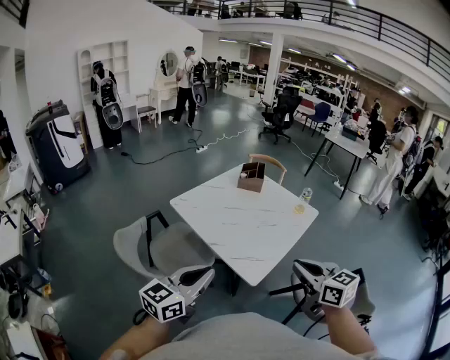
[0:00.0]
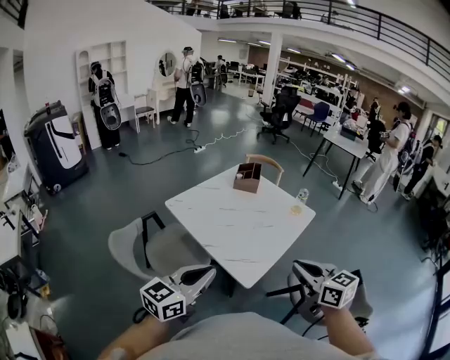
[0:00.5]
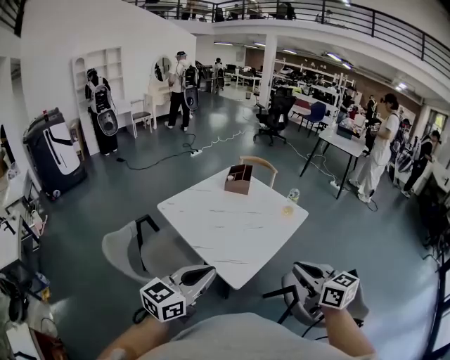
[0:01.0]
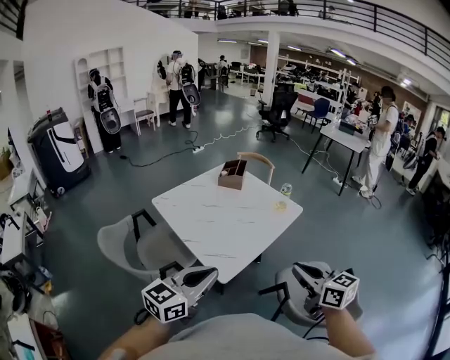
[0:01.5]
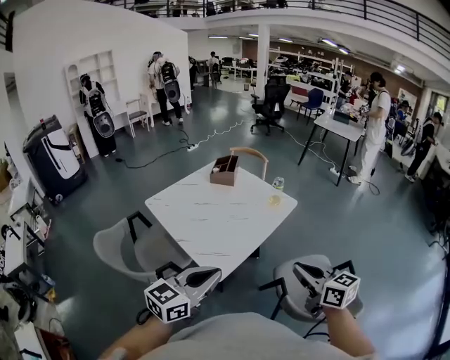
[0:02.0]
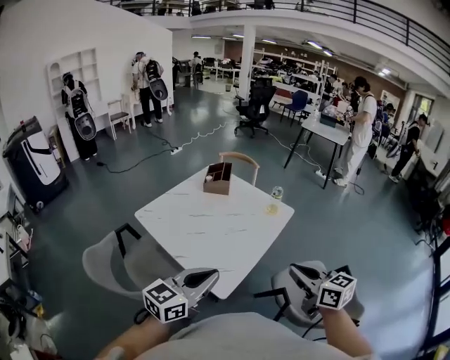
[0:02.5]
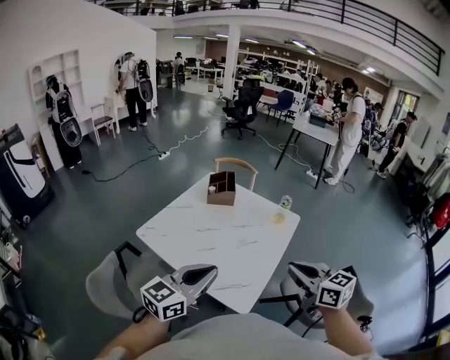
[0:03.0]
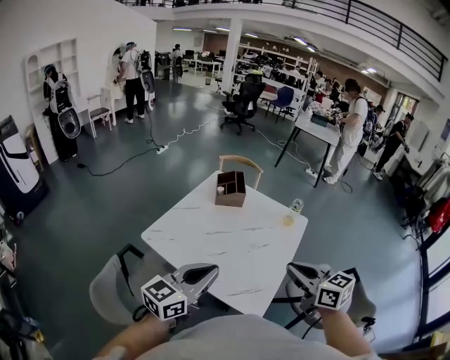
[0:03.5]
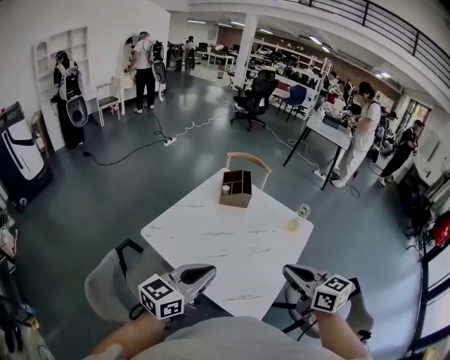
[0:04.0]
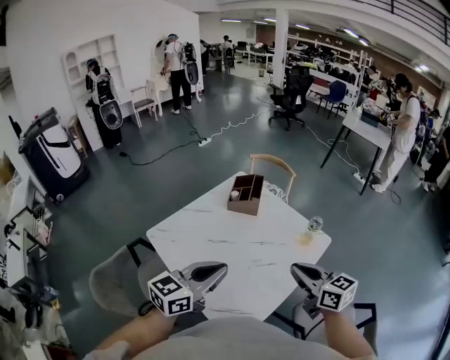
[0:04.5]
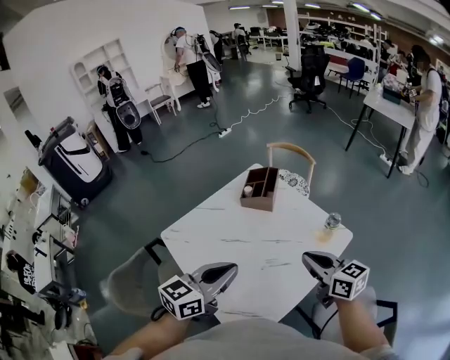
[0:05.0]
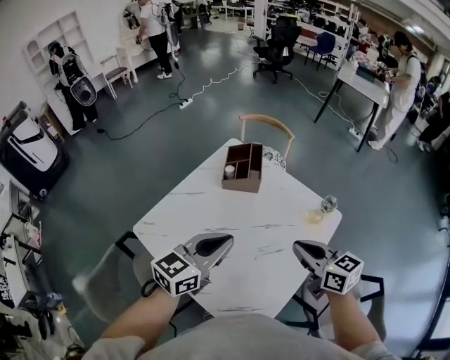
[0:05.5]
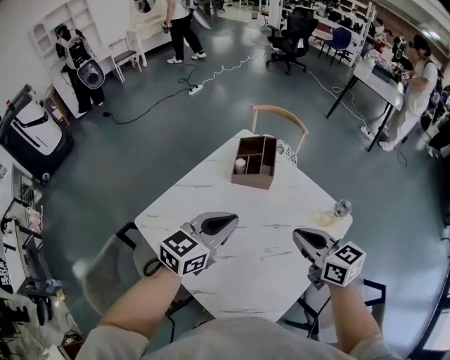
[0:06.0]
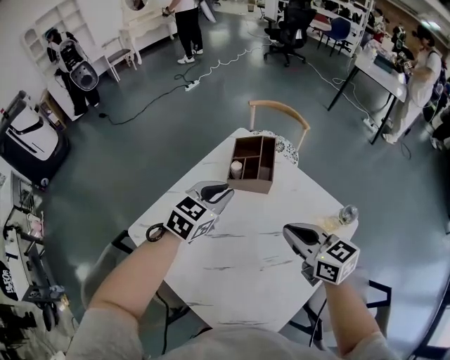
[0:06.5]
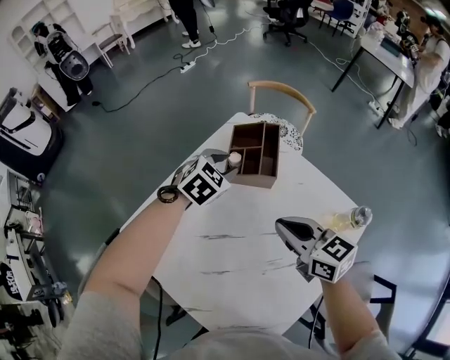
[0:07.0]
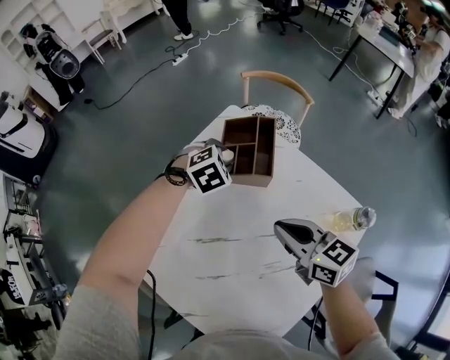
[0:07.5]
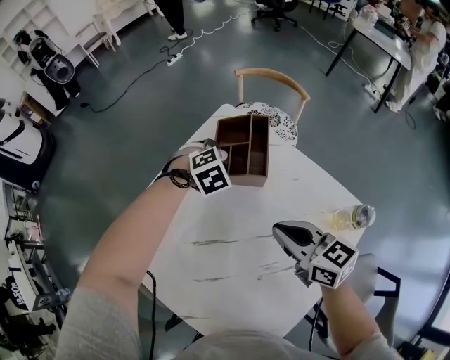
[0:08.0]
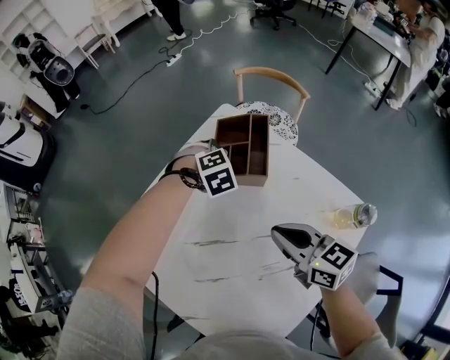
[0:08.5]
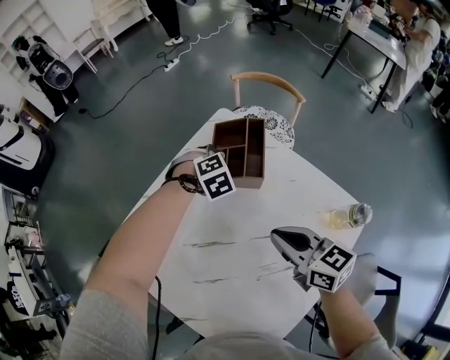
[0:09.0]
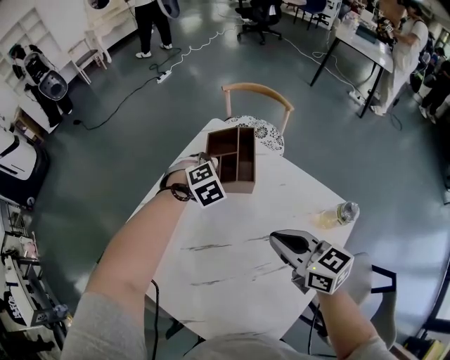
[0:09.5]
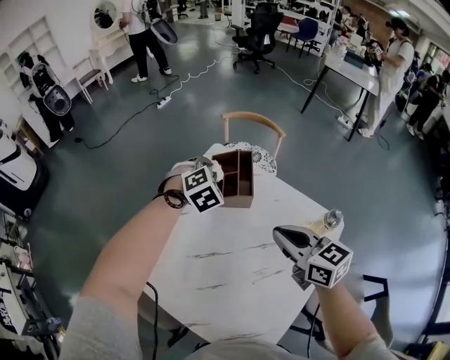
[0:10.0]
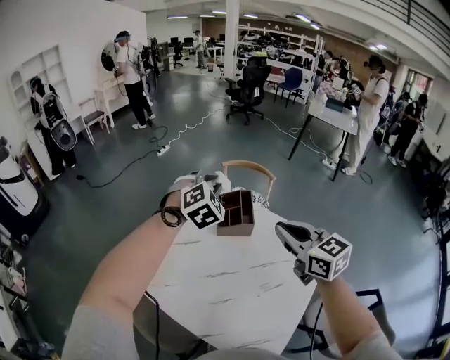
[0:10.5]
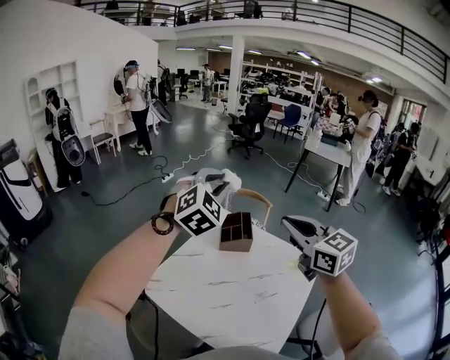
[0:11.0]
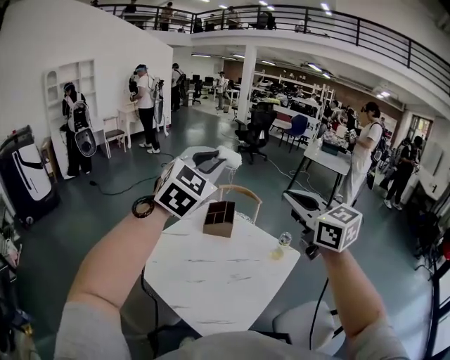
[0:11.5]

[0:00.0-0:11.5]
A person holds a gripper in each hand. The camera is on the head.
0:00.0 to 0:02.0: The two grippers go roughly 20 cm to the right.
0:02.0 to 0:04.0: The grippers both shift to the left and forward by roughly 30 cm.
0:04.0 to 0:06.0: The right gripper moves forward and downward, approximately 25 cm. Meanwhile the left gripper shifts approximately 25 cm forward.
0:06.0 to 0:07.5: The left gripper heads forward and downward, covering approximately 30 cm, angles its fingers downward, by approximately 50 degrees, and opens. Meanwhile the right gripper goes some 15 cm forward and downward.
0:07.5 to 0:09.5: The grippers stay close to where they were, moving slightly.
0:09.5 to 0:11.5: The left gripper moves upward and backward, about 60 cm, and tilts its fingers approximately 60 degrees upward; the right gripper travels upward by approximately 40 cm, and swivels about 40 degrees.

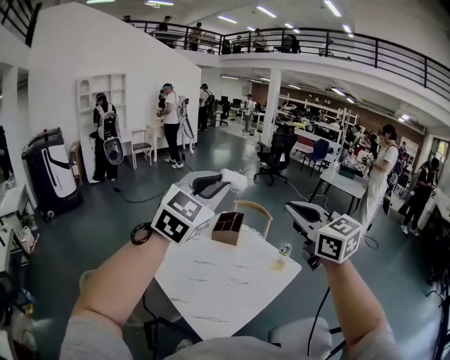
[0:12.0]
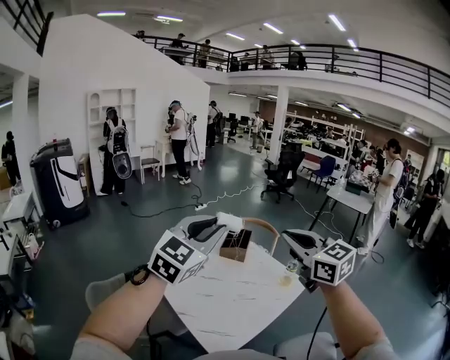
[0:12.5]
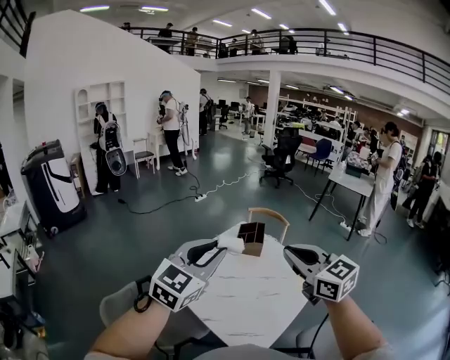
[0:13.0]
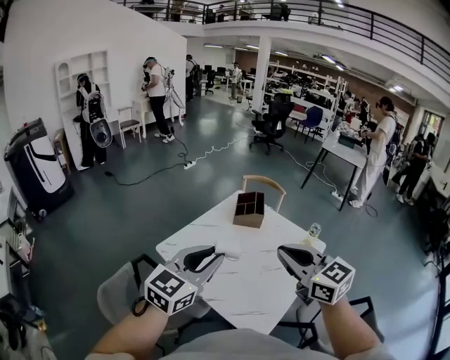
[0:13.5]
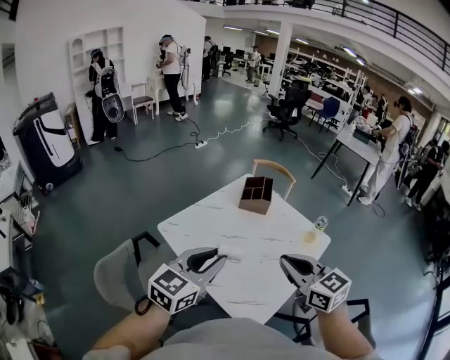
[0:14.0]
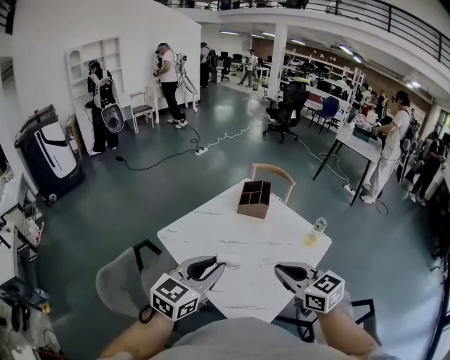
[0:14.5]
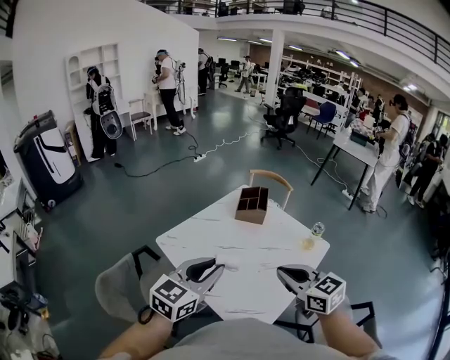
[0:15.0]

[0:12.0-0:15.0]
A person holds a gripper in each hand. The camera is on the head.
0:12.0 to 0:13.5: The right gripper moves to the left and downward, approximately 20 cm; the left gripper shifts approximately 25 cm downward and to the left, and swivels some 30 degrees.
0:13.5 to 0:15.0: The left gripper goes approximately 5 cm downward. The right gripper is displaced downward and to the right by approximately 10 cm.

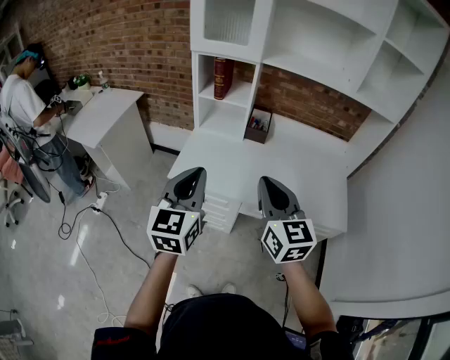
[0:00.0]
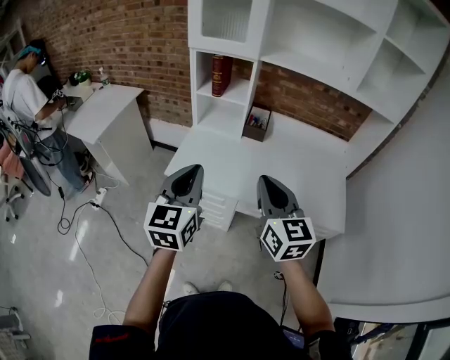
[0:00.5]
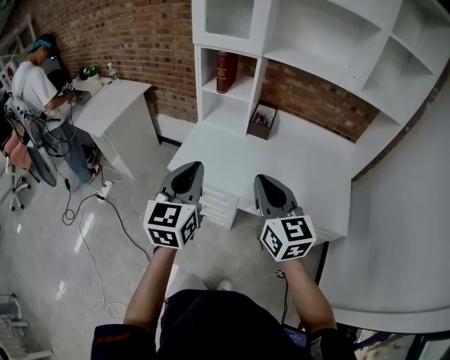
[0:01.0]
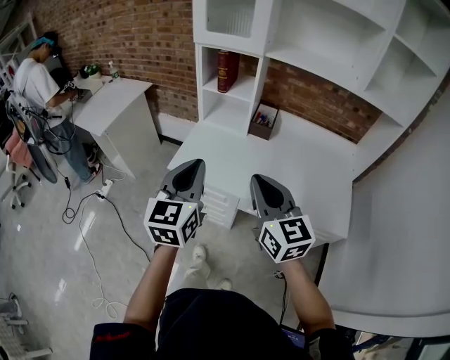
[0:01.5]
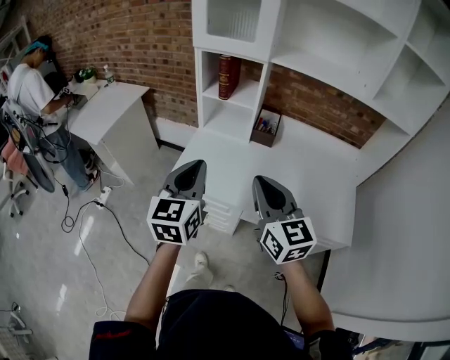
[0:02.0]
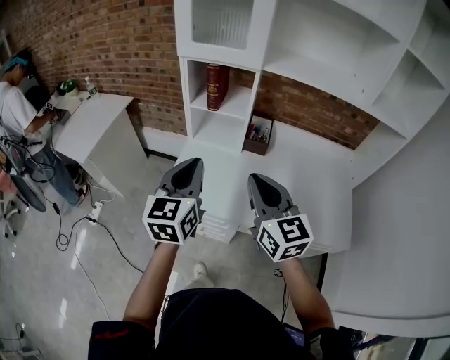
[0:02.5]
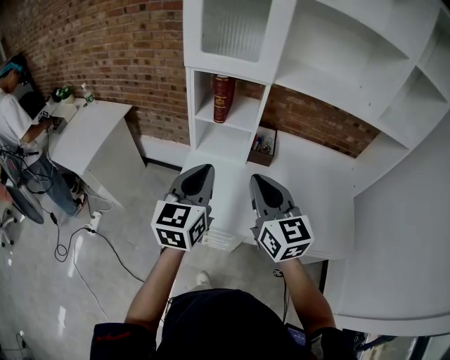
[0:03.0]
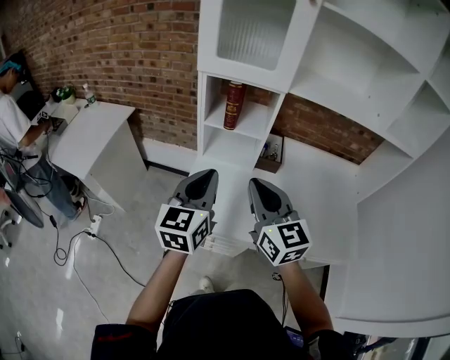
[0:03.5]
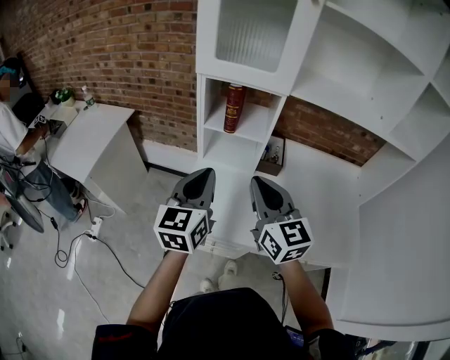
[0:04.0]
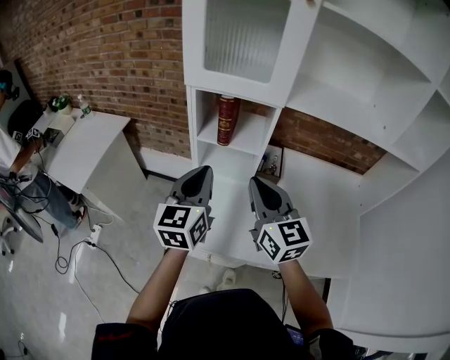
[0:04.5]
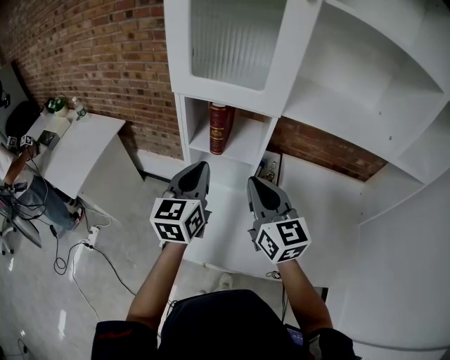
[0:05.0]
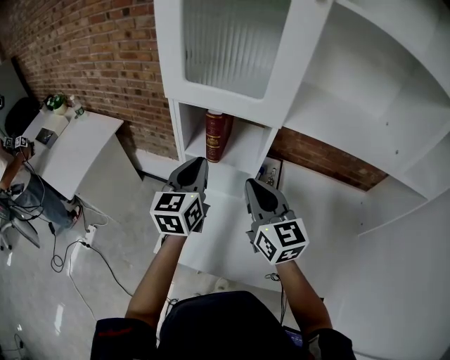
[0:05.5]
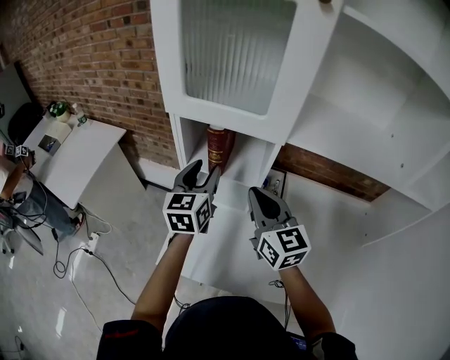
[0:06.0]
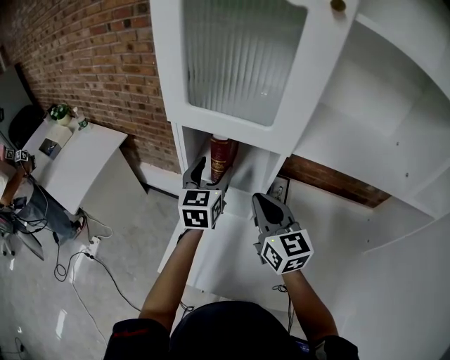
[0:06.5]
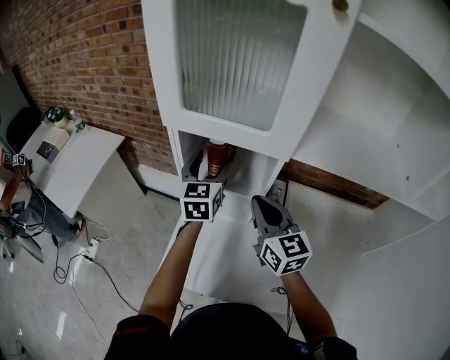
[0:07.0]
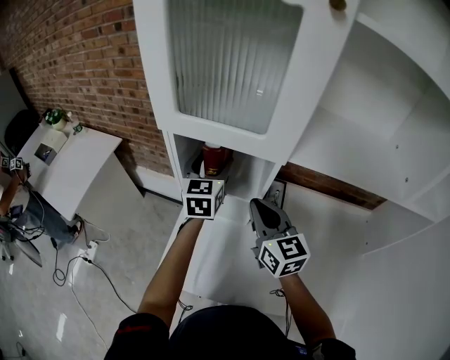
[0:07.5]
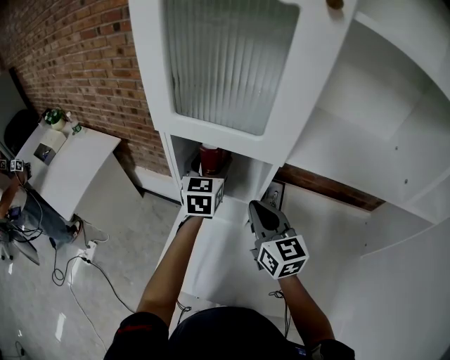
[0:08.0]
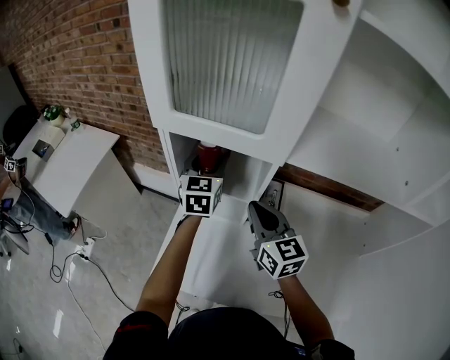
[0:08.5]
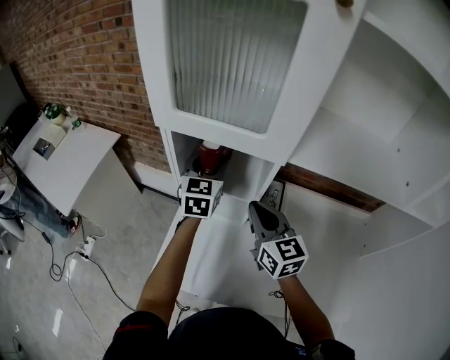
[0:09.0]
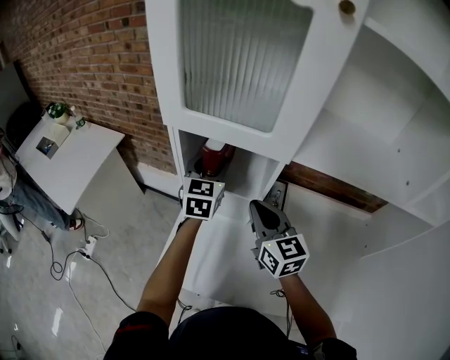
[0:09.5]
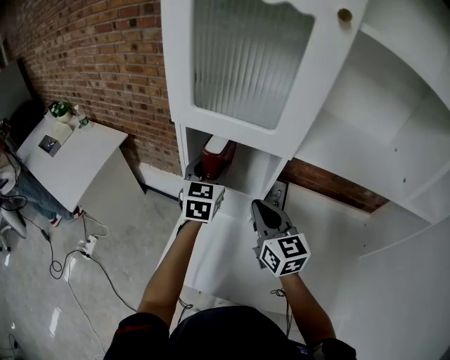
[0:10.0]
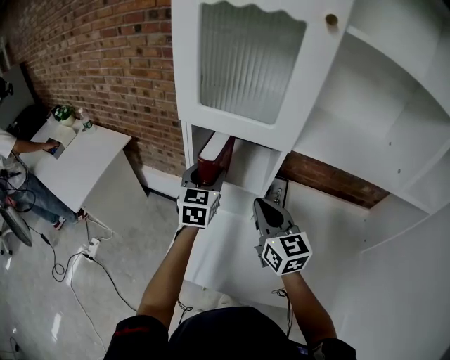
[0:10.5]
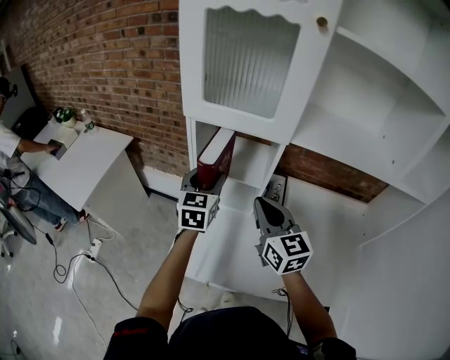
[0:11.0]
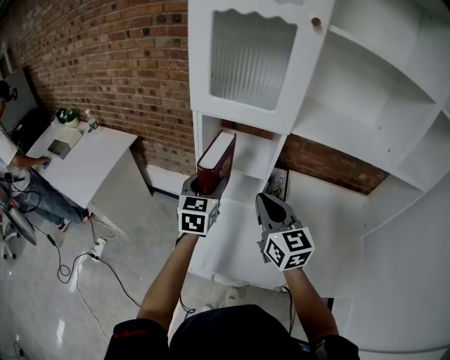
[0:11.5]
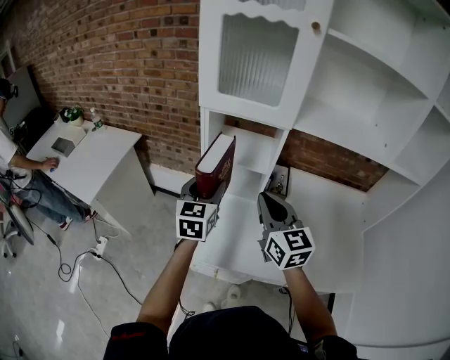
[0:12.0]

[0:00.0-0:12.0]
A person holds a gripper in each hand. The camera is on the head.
0:00.0 to 0:02.0: Both grippers travel together forward, roughly 5 cm.
0:02.0 to 0:04.0: The left gripper shifts about 20 cm forward; the right gripper shifts roughly 20 cm forward and to the left.
0:04.0 to 0:06.0: Both grippers move forward, about 20 cm. The left gripper opens up.
0:06.0 to 0:08.0: The right gripper changes place by roughly 5 cm. Meanwhile the left gripper travels forward by approximately 10 cm, and opens up.
0:08.0 to 0:10.0: The left gripper shifts by about 5 cm.
0:10.0 to 0:12.0: Both grippers move backward, approximately 15 cm.
